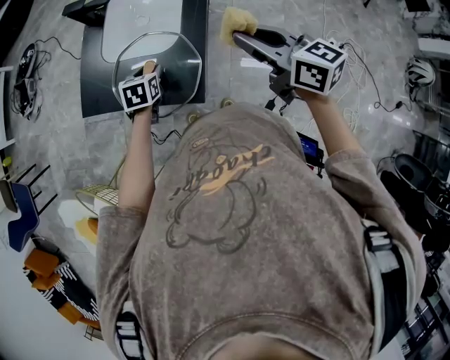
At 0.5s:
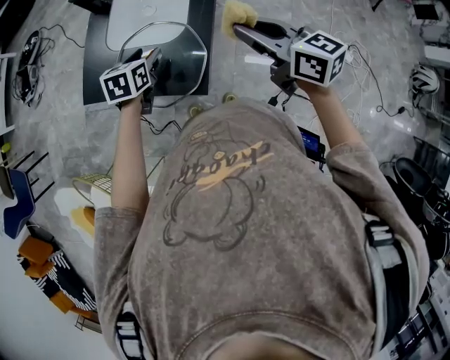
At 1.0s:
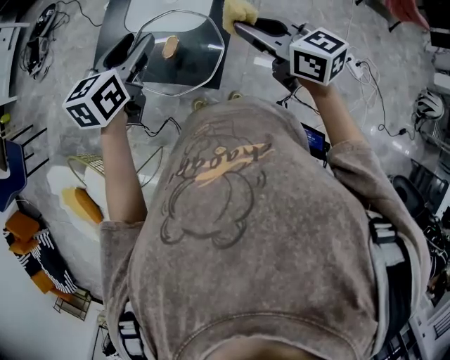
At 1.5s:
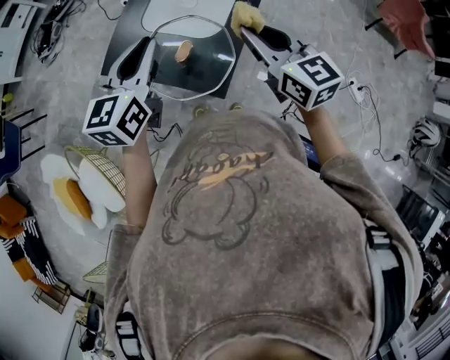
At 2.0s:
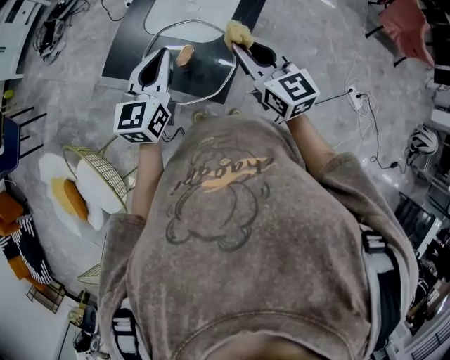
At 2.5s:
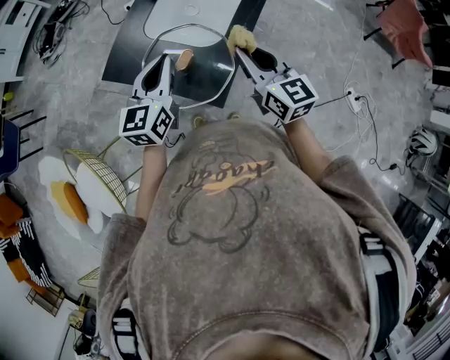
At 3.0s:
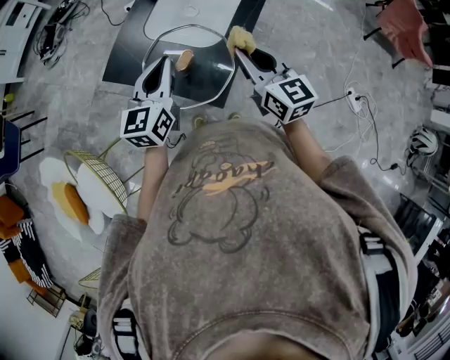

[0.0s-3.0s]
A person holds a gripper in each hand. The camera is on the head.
0.0s to 1.5s: The right gripper is displaced to the left by about 10 cm; the left gripper moves upward, some 25 cm, angles its fingers upward, by about 40 degrees, and closes up.
1.5s to 3.0s: Both grippers move downward, roughly 5 cm.

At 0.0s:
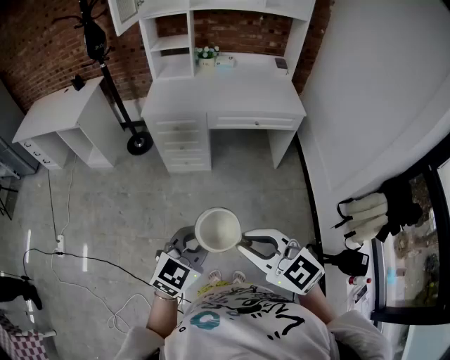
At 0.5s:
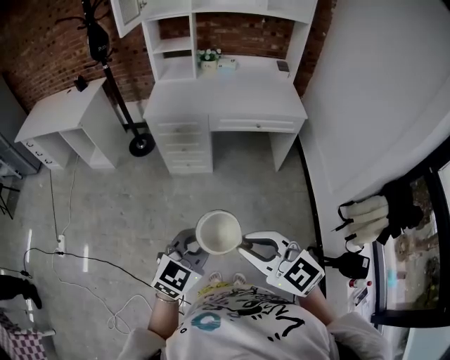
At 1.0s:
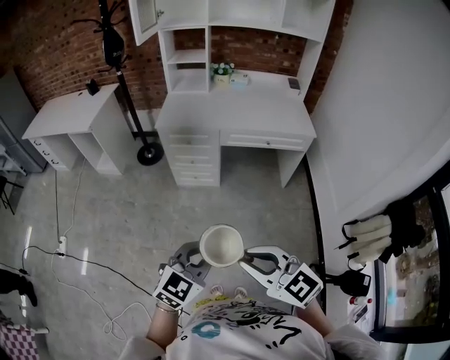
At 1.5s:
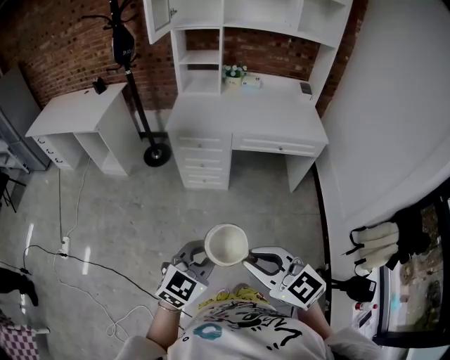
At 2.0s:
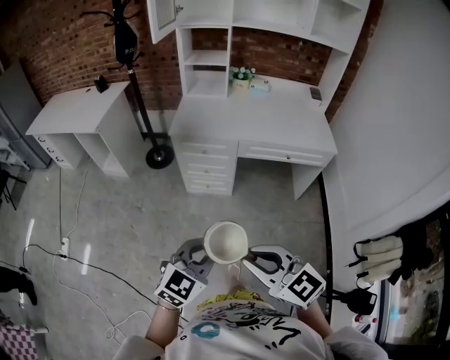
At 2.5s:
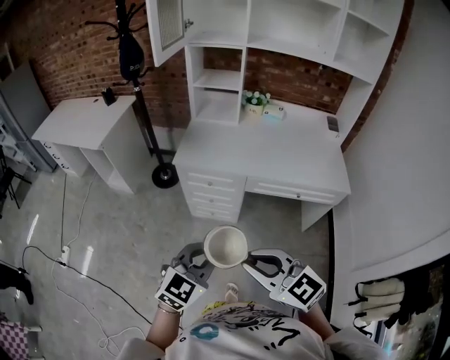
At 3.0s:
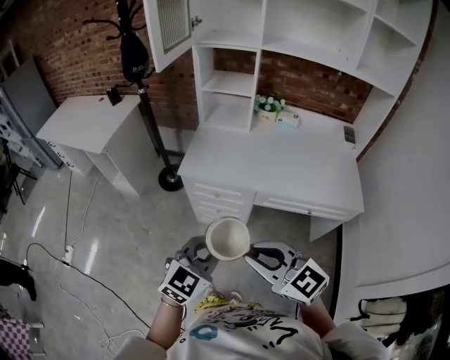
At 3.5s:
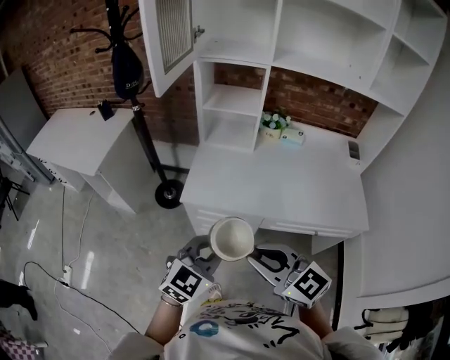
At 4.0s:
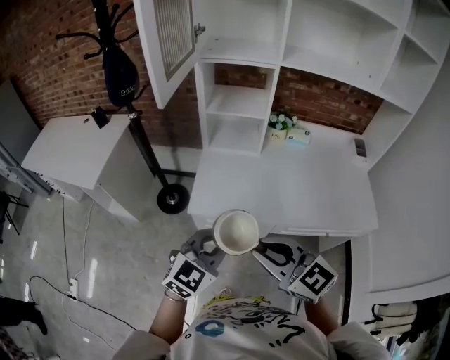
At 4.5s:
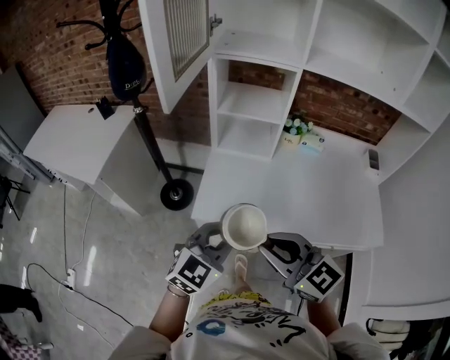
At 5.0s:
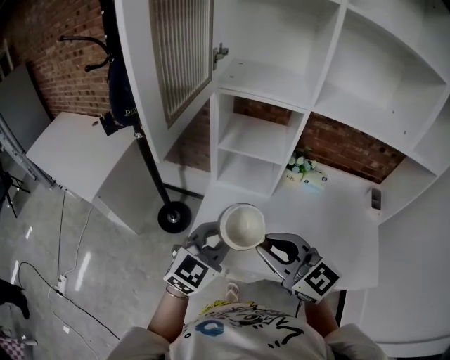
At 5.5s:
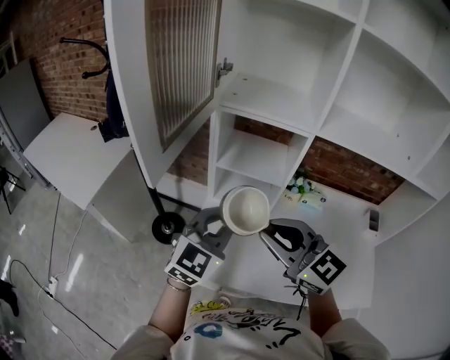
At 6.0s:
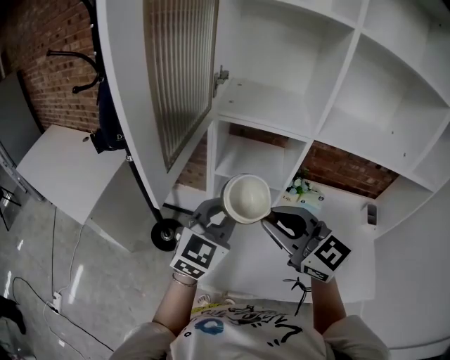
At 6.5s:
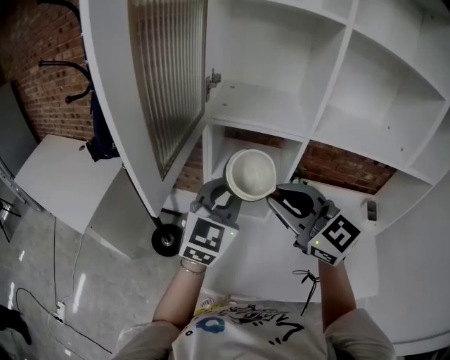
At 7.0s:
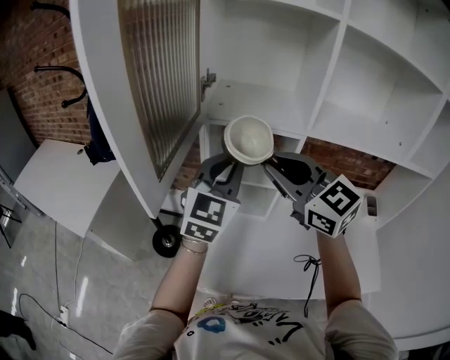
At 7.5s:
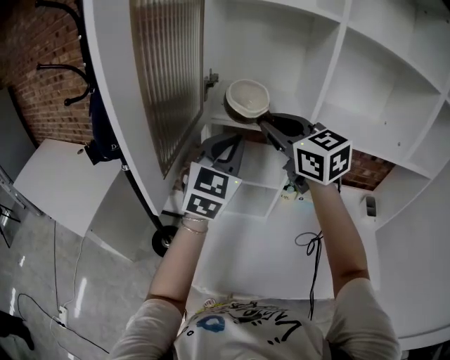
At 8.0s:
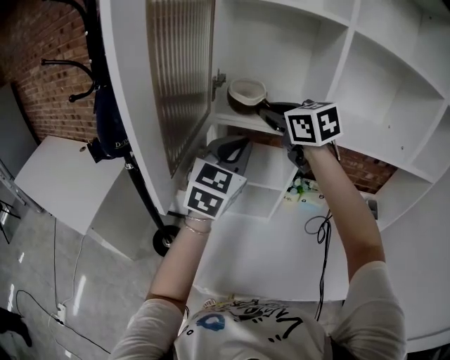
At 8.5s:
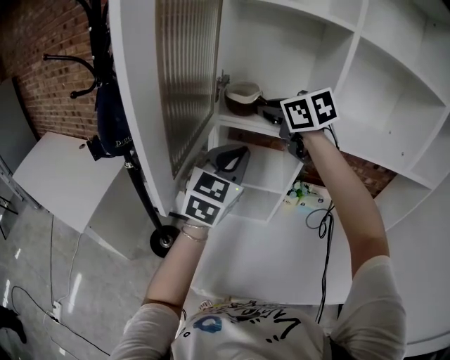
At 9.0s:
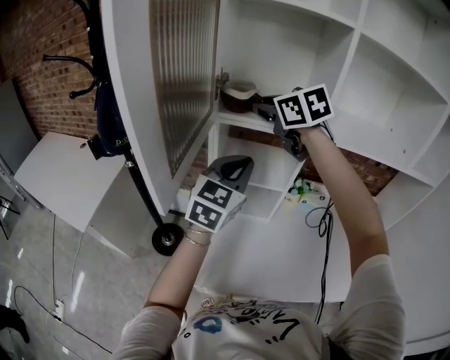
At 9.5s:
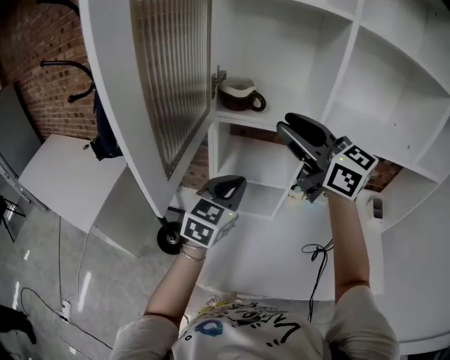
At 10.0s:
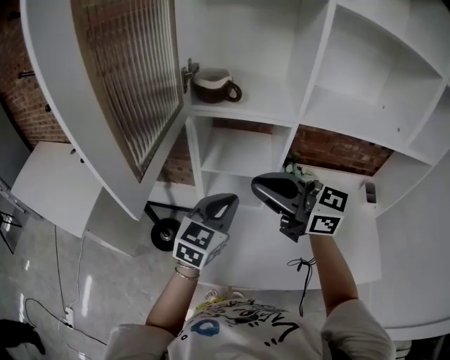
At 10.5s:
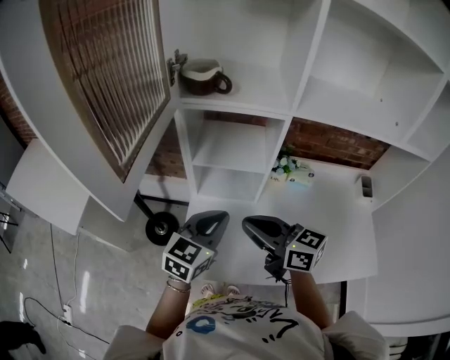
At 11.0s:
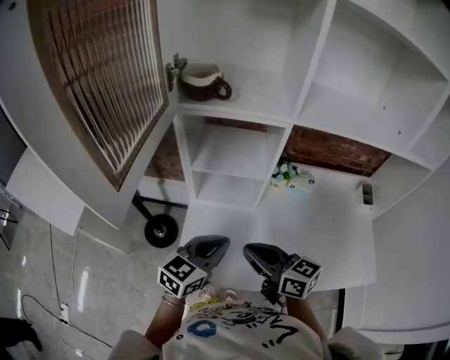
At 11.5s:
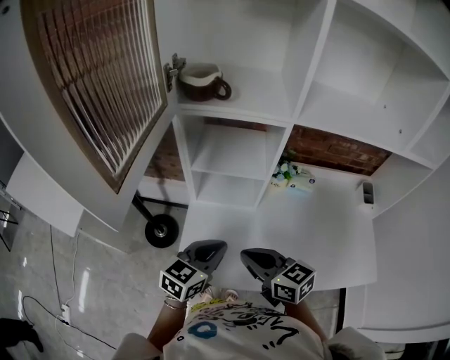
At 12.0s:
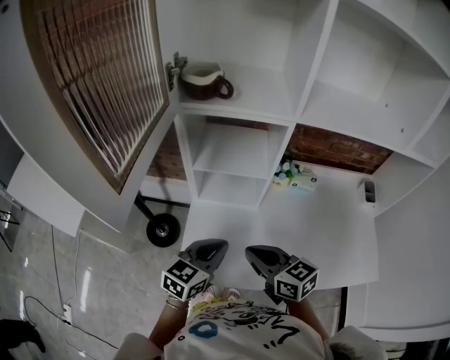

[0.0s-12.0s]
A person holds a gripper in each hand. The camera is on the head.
0.0s to 2.0s: Both grippers travel together forward and to the left, some 15 cm.
2.0s to 4.0s: The two grippers travel together, forward, approximately 50 cm.
4.0s to 6.0s: The two grippers go about 30 cm forward.
6.0s to 8.0s: The left gripper goes roughly 15 cm forward and upward. Meanwhile the right gripper travels forward and upward by some 25 cm, and changes its angle by about 20 degrees.
8.0s to 10.0s: The left gripper heads downward and backward, covering roughly 15 cm; the right gripper goes roughly 20 cm backward and downward, swivels roughly 40 degrees, and opens, then closes once more.
10.0s to 12.0s: The right gripper shifts approximately 20 cm downward, and swivels about 30 degrees; the left gripper moves downward and backward, some 15 cm.

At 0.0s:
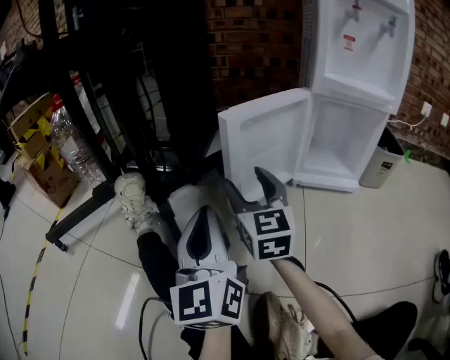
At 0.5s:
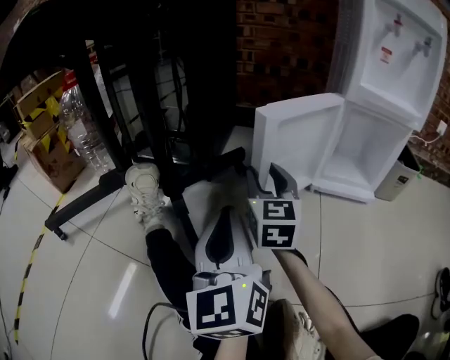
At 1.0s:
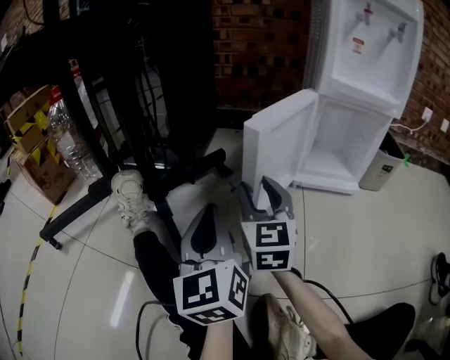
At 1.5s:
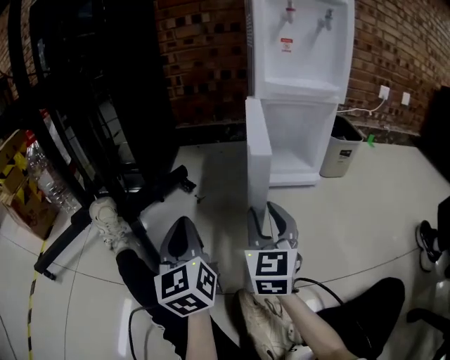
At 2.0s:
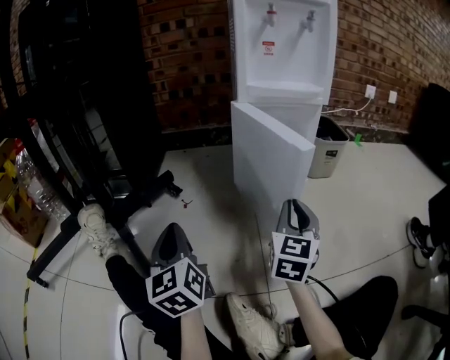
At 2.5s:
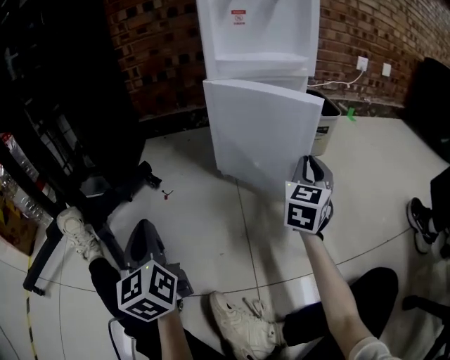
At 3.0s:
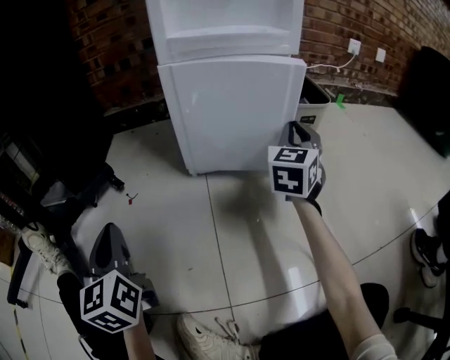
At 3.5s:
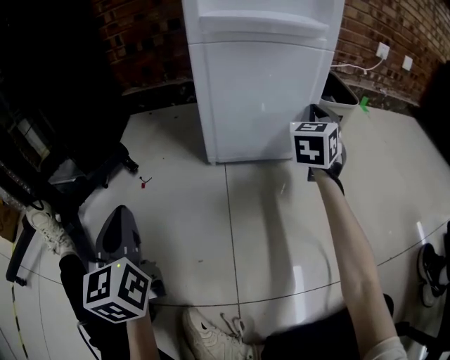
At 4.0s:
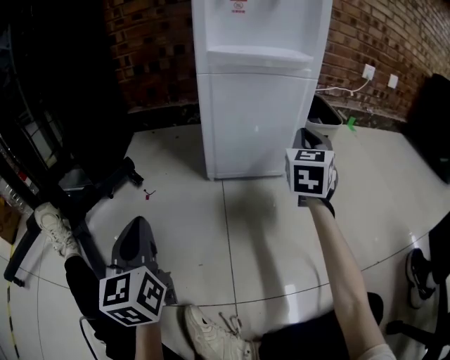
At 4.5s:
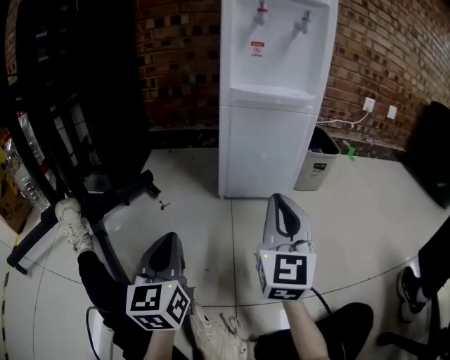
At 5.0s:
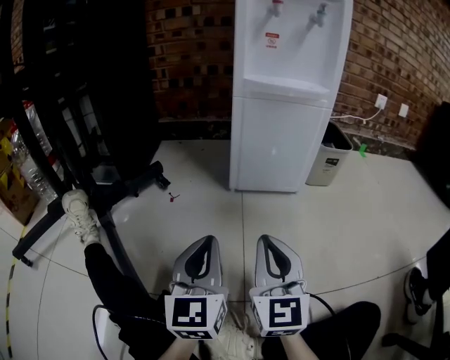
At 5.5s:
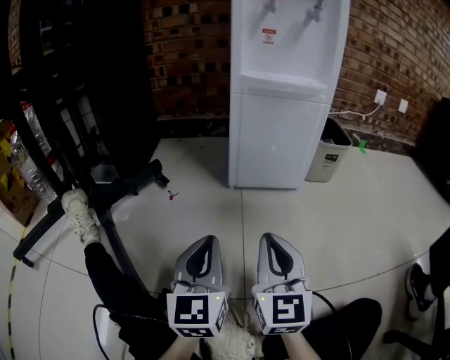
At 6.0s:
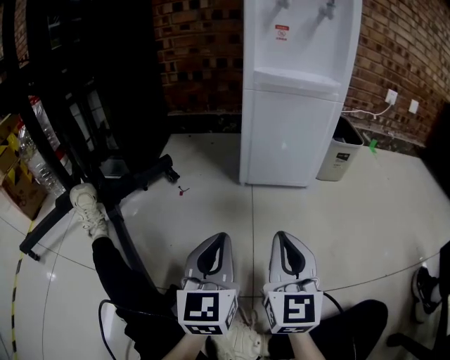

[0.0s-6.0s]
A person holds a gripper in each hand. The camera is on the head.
0.0s to 2.0s: The right gripper goes roughly 30 cm to the right and backward, rotates approximately 40 degrees, and closes its fingers. Meanwhile the left gripper shifts roughly 5 cm downward.
2.0s to 4.0s: The left gripper moves approximately 5 cm. Meanwhile the right gripper heads forward and to the right, covering roughly 25 cm.
4.0s to 6.0s: The right gripper shifts some 30 cm backward and to the left, and changes its angle by some 30 degrees. Meanwhile the left gripper heads to the right and backward, covering about 10 cm.

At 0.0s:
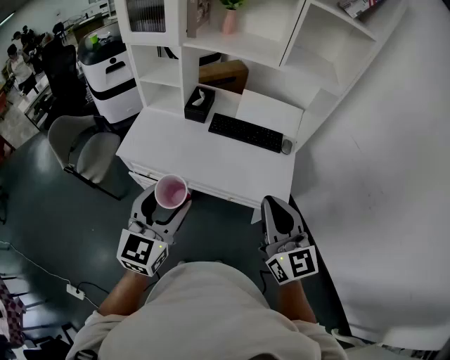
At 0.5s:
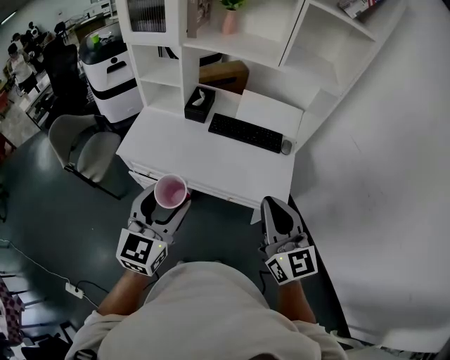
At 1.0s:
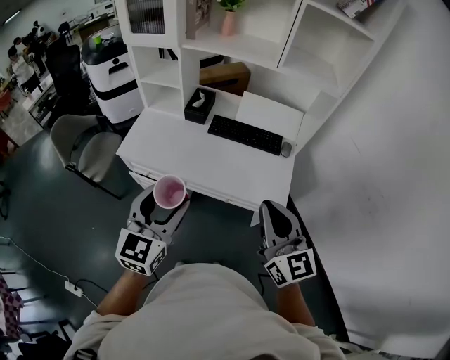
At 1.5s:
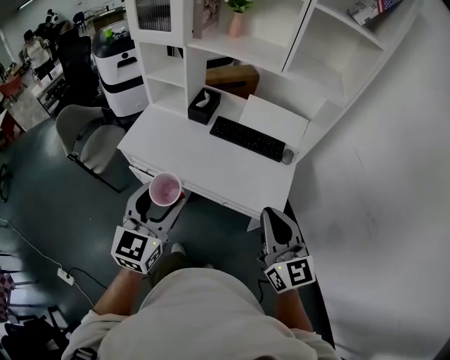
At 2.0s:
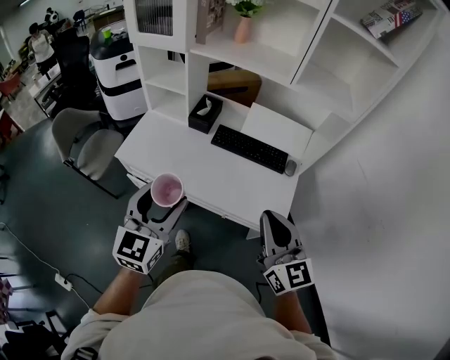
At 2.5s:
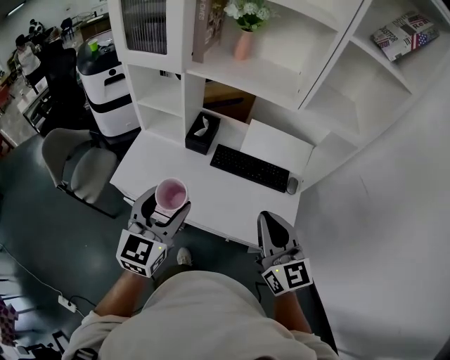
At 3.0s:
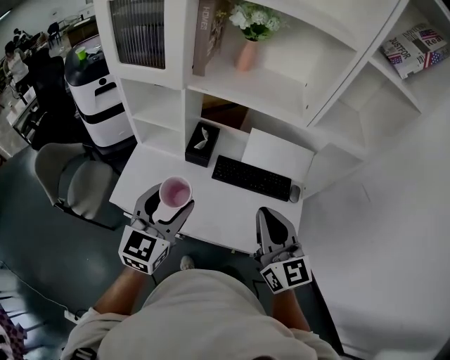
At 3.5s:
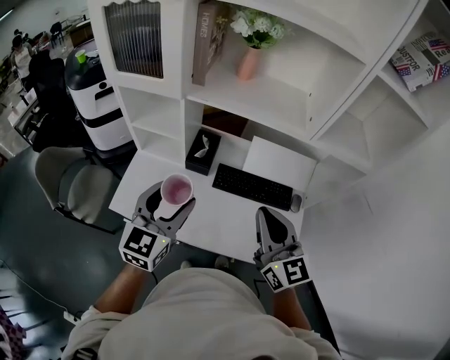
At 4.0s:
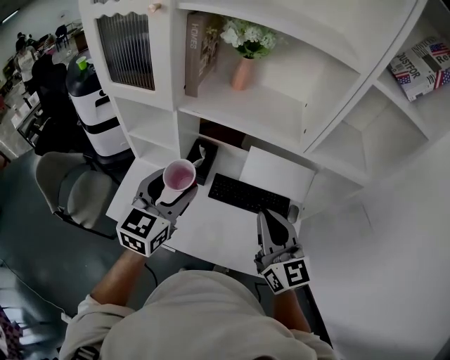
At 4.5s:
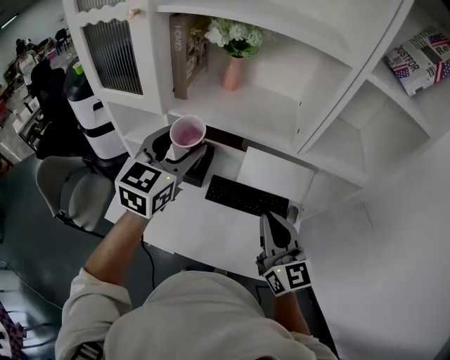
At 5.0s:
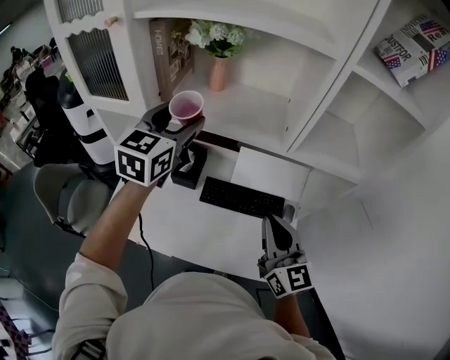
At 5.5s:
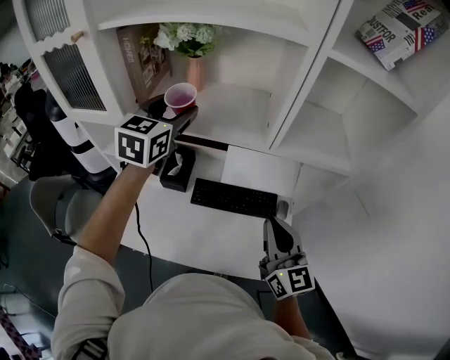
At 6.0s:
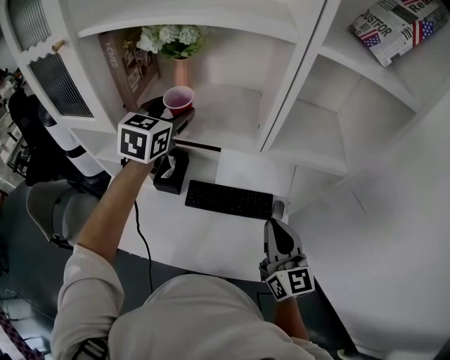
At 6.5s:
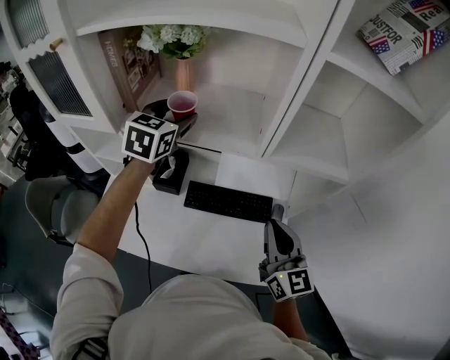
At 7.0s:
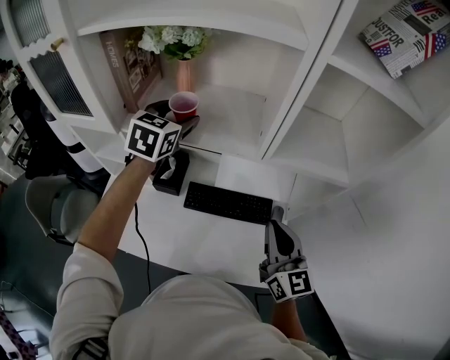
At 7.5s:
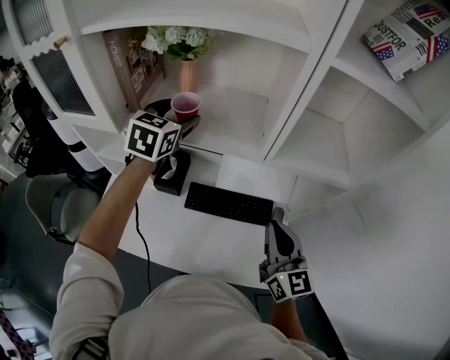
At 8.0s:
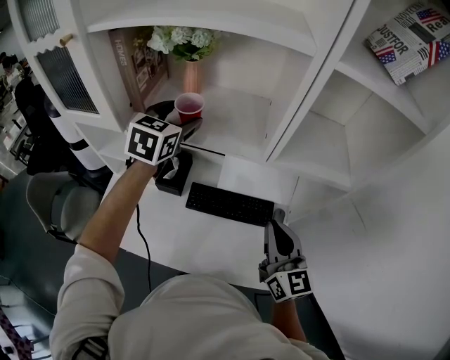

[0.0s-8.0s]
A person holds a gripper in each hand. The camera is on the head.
0.0s to 2.0s: The grippers both shift forward by approximately 5 cm.
2.0s to 4.0s: The two grippers go roughly 30 cm forward.
4.0s to 6.0s: The left gripper moves forward and to the right, some 25 cm. The right gripper travels to the right by roughly 15 cm.
6.0s to 8.0s: The grippers stay close to where they were, moving slightly.
